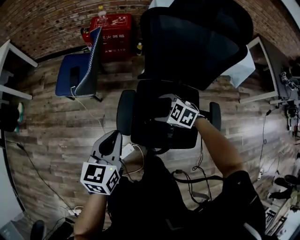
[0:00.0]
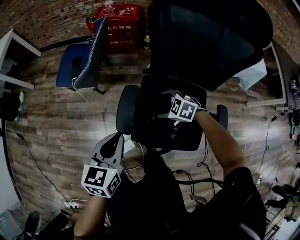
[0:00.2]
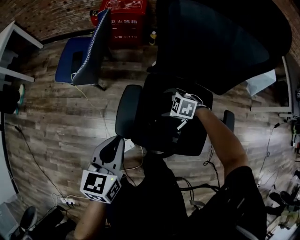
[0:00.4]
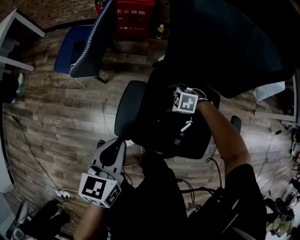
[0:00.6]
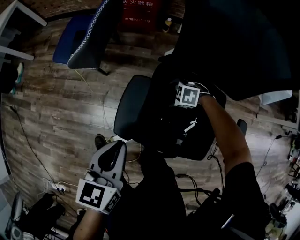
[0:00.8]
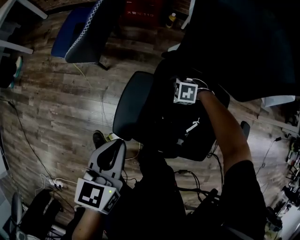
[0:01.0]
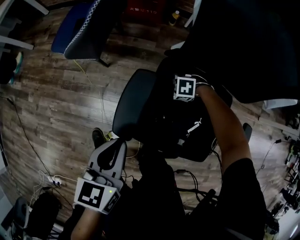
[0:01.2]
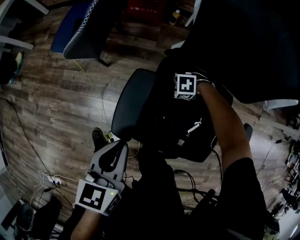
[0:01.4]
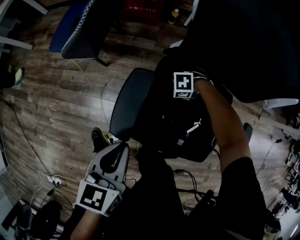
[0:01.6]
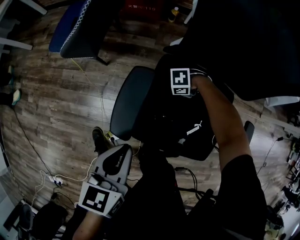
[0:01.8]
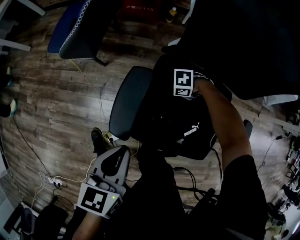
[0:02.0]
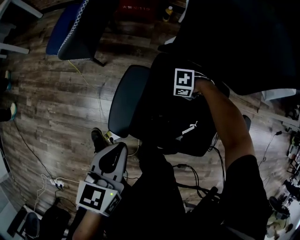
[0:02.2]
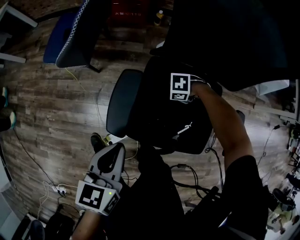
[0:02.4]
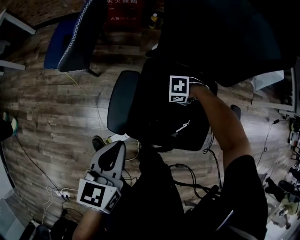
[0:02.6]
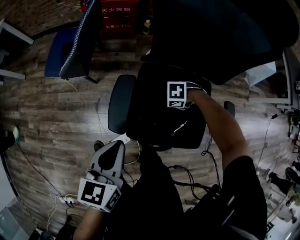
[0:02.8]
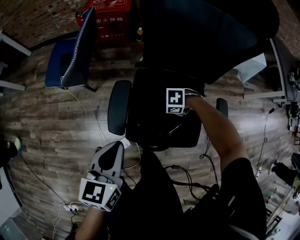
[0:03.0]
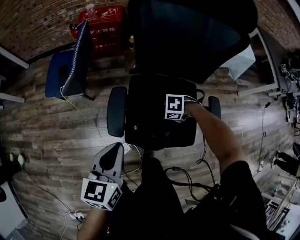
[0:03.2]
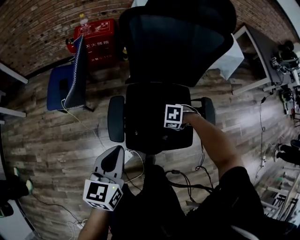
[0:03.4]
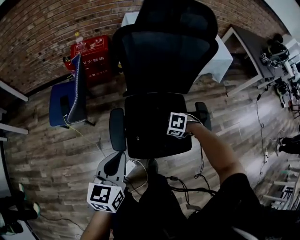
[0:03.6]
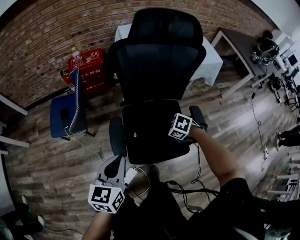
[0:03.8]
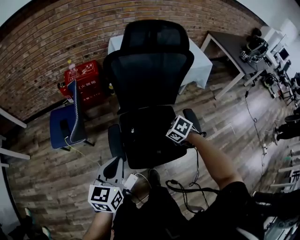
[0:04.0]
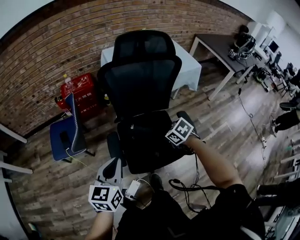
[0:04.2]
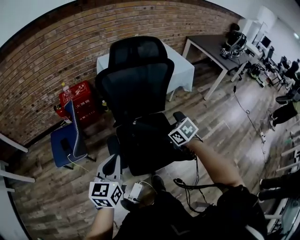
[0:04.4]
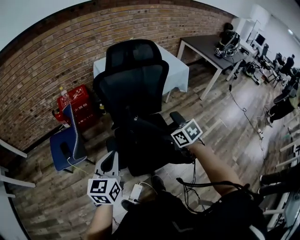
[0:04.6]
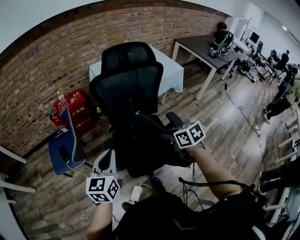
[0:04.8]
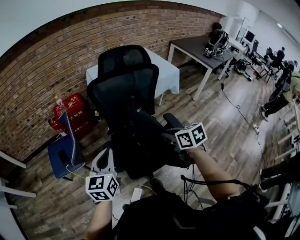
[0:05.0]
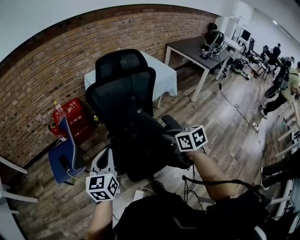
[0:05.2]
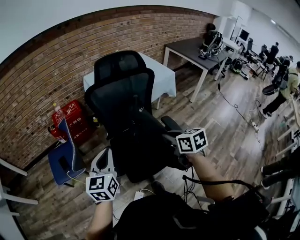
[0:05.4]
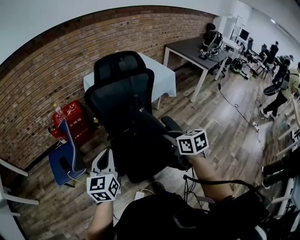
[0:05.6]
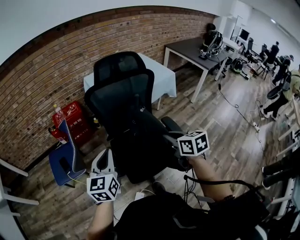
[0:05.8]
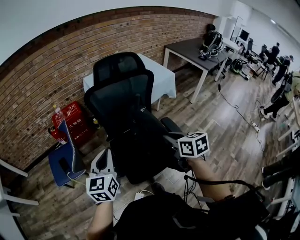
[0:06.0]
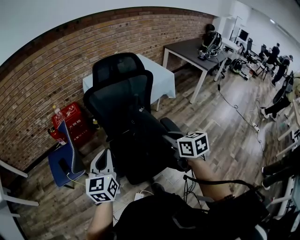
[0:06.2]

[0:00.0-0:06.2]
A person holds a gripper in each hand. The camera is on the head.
0:00.0 to 0:01.6: The right gripper is displaced downward by roughly 30 cm, and rotates some 50 degrees. Meanwhile the left gripper moves downward, about 15 cm.
0:01.6 to 0:03.2: The two grippers go approximately 15 cm upward. The right gripper rotates roughly 20 degrees, and closes up.
0:03.2 to 0:04.6: The left gripper is displaced upward by roughly 15 cm, and swivels roughly 30 degrees; the right gripper is displaced upward by some 30 cm, and turns by some 80 degrees.
0:04.6 to 0:06.2: The right gripper is displaced upward by approximately 10 cm, and swivels about 30 degrees.

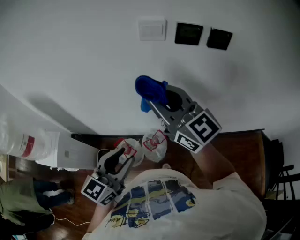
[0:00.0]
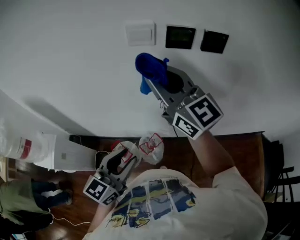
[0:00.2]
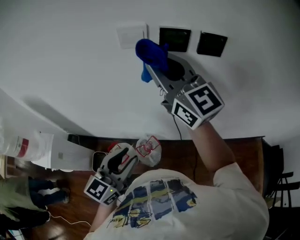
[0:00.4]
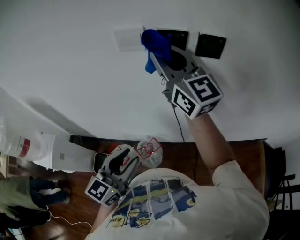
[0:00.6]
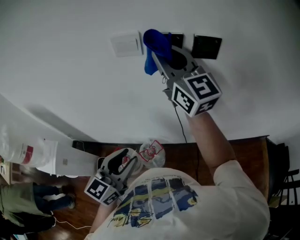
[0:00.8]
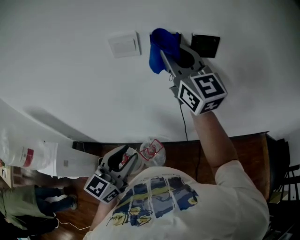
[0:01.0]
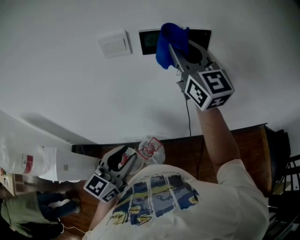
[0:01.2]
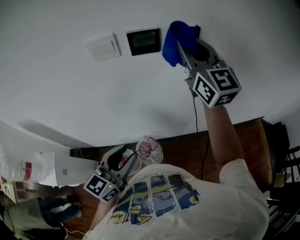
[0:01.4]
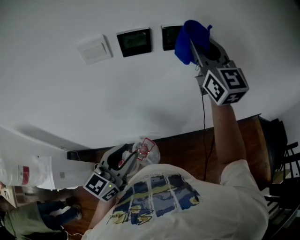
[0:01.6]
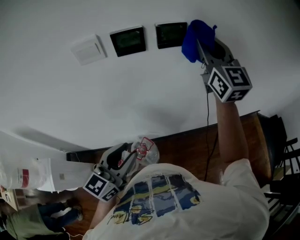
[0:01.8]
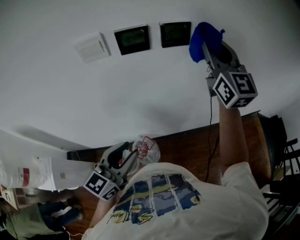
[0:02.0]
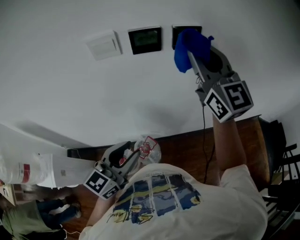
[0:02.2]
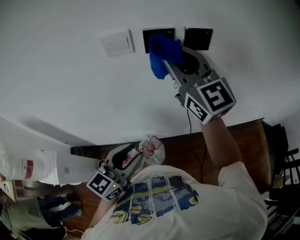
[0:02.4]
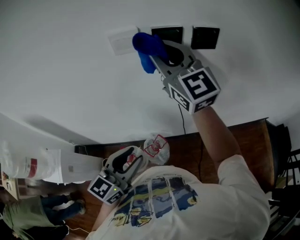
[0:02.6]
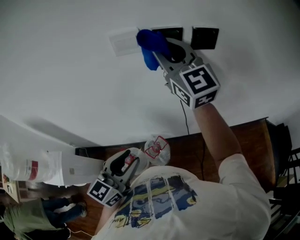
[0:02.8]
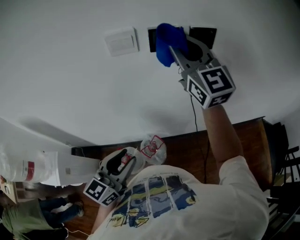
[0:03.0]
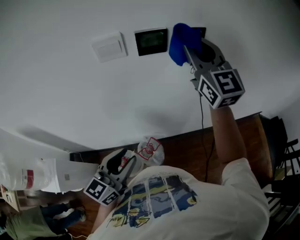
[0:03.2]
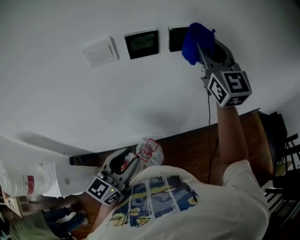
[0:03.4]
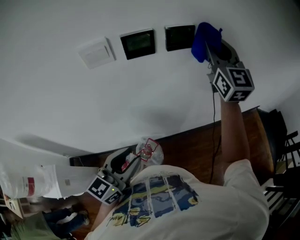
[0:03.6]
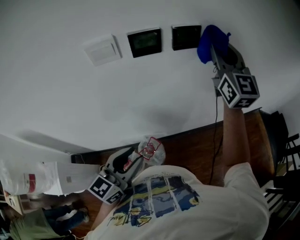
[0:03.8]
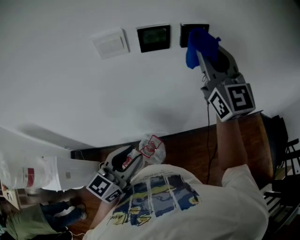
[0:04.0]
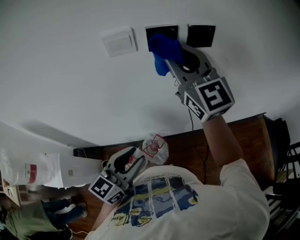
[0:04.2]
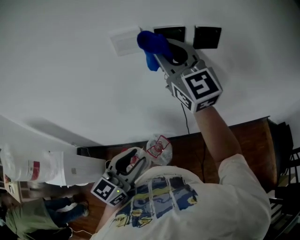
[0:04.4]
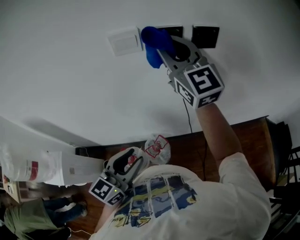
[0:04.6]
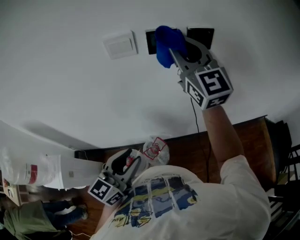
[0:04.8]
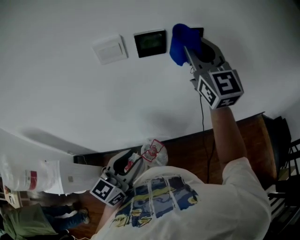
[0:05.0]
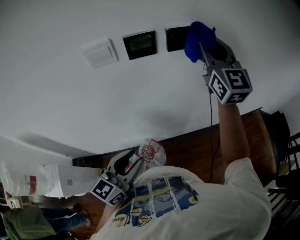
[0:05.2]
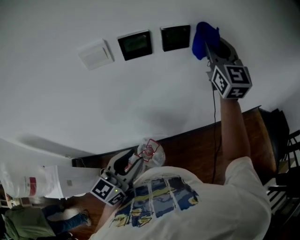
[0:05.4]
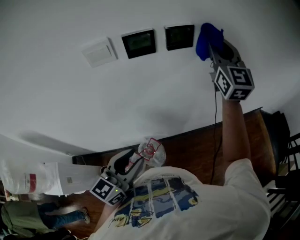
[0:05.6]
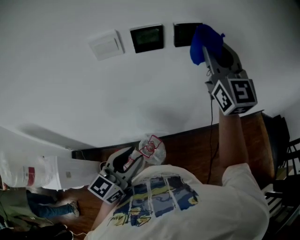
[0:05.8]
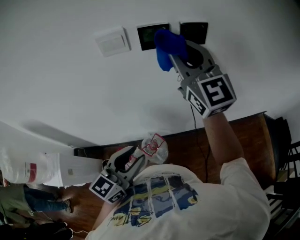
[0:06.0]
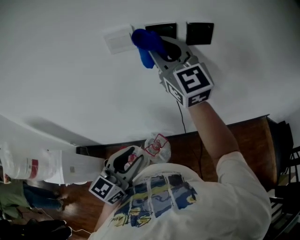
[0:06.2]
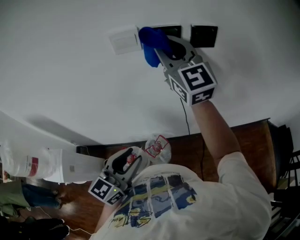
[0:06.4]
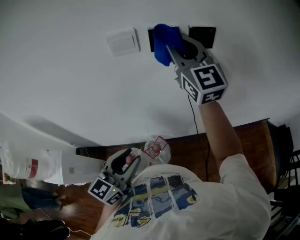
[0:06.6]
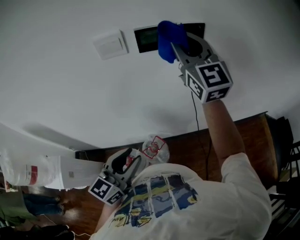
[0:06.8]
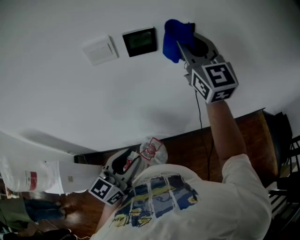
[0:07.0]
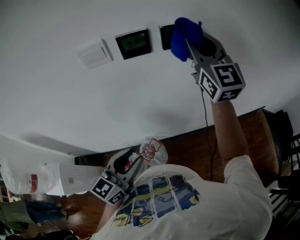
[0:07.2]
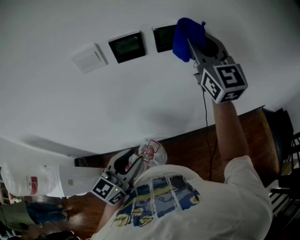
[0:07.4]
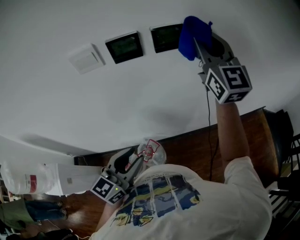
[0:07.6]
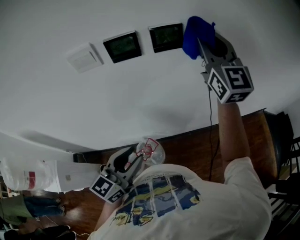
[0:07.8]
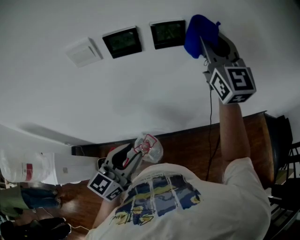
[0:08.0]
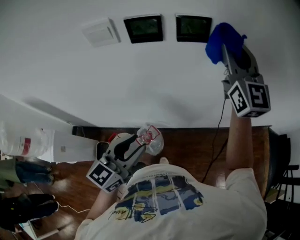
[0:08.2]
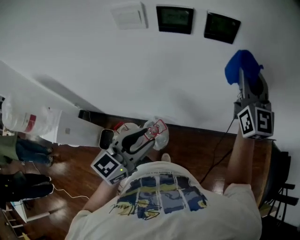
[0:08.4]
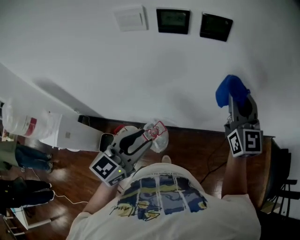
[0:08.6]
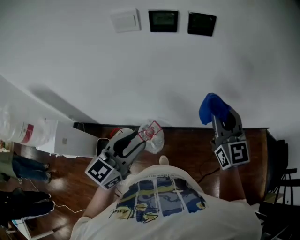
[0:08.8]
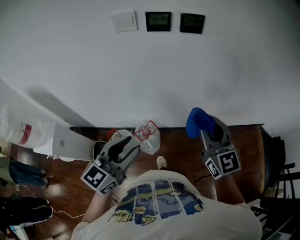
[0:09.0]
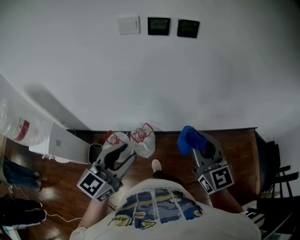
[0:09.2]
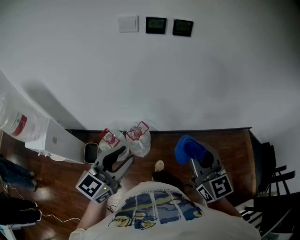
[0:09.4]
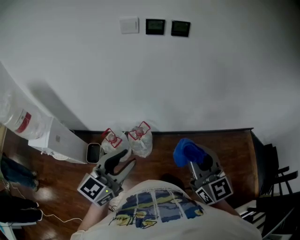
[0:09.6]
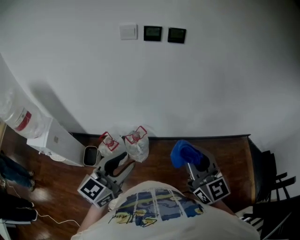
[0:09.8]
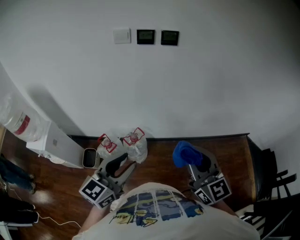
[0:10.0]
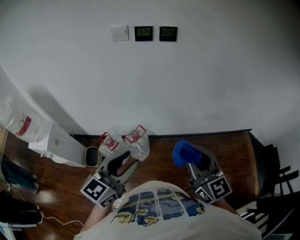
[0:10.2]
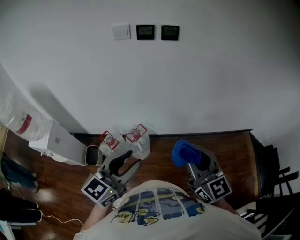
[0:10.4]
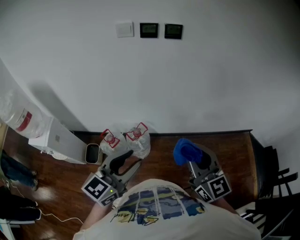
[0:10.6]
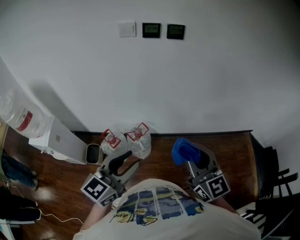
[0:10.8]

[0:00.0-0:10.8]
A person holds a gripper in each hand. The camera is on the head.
0:00.0 to 0:01.6: The left gripper heads to the right and forward, covering approximately 15 cm. Meanwhile the right gripper is displaced to the right and forward by roughly 35 cm, and turns by about 40 degrees.
0:01.6 to 0:03.0: The right gripper moves left and right over about 25 cm, changing direction 2 times, while the left gripper shifts about 10 cm to the left.
0:03.0 to 0:04.6: The right gripper goes to the right and returns, approximately 20 cm each way.
0:04.6 to 0:06.2: The right gripper goes to the right and returns, some 25 cm each way.
0:06.2 to 0:07.8: The right gripper heads to the right, covering about 25 cm. The left gripper shifts roughly 10 cm to the right and forward.
0:07.8 to 0:09.2: The right gripper moves backward and downward, approximately 40 cm, and swivels some 30 degrees, while the left gripper travels backward by some 20 cm.
0:09.2 to 0:10.8: The right gripper is displaced backward by some 10 cm, while the left gripper moves backward and to the right, approximately 10 cm.

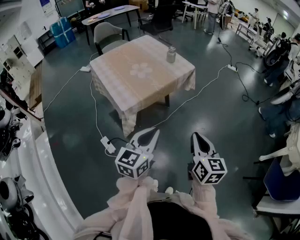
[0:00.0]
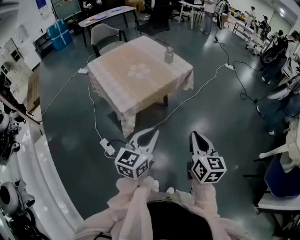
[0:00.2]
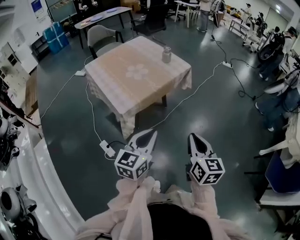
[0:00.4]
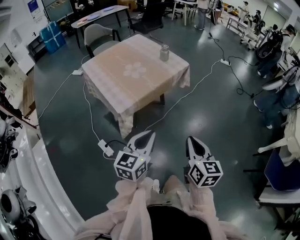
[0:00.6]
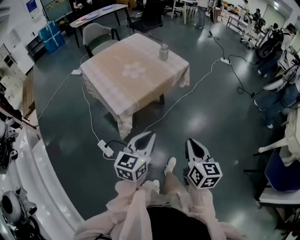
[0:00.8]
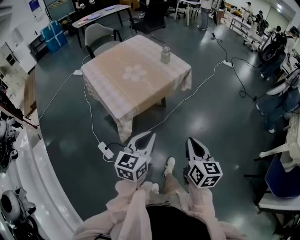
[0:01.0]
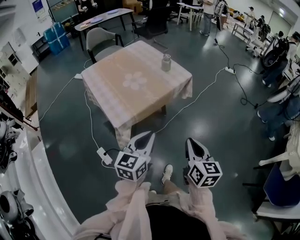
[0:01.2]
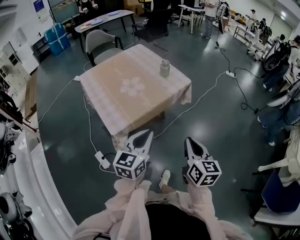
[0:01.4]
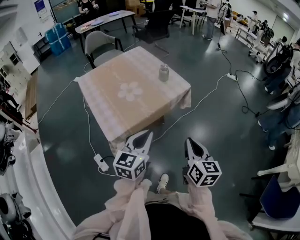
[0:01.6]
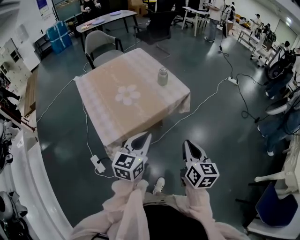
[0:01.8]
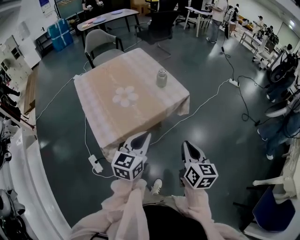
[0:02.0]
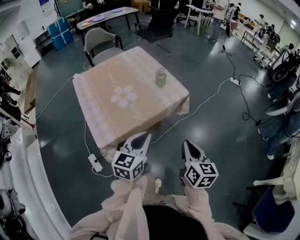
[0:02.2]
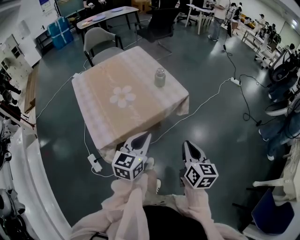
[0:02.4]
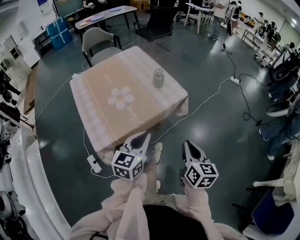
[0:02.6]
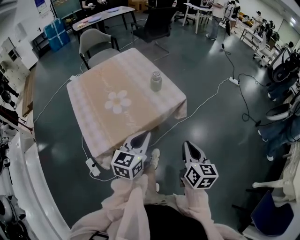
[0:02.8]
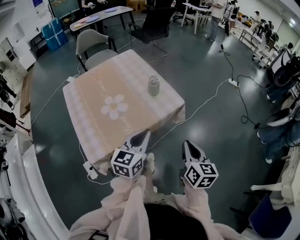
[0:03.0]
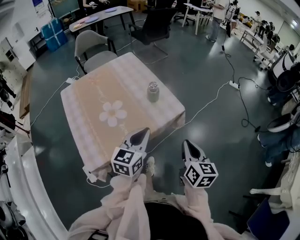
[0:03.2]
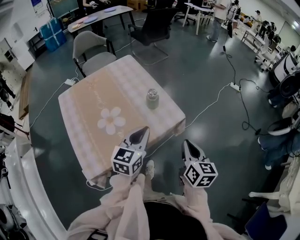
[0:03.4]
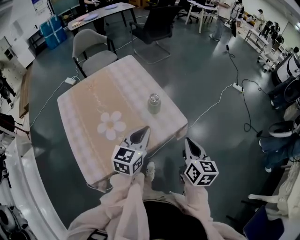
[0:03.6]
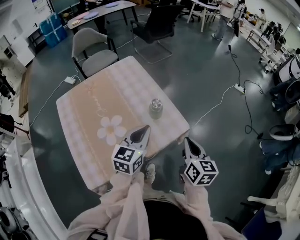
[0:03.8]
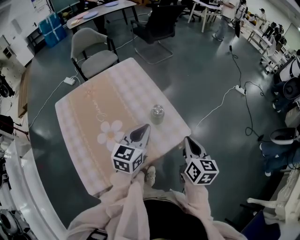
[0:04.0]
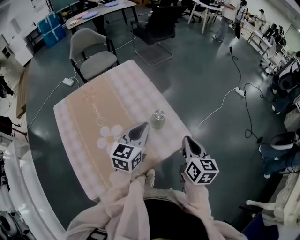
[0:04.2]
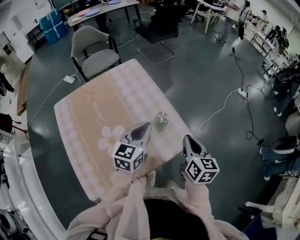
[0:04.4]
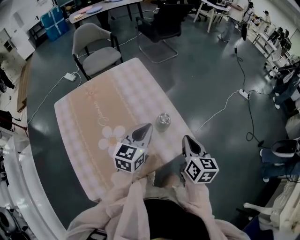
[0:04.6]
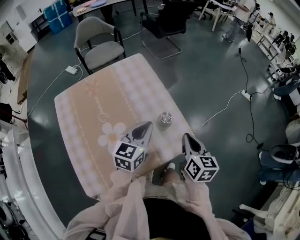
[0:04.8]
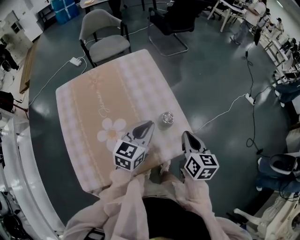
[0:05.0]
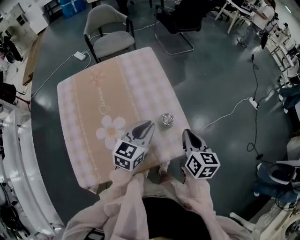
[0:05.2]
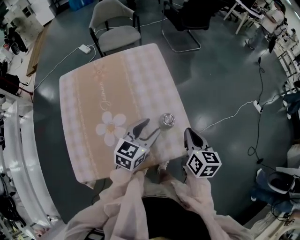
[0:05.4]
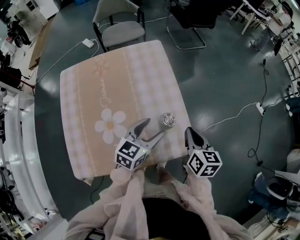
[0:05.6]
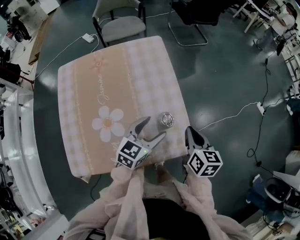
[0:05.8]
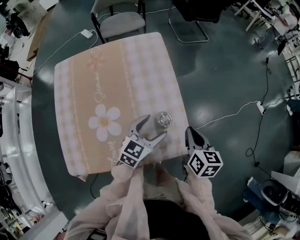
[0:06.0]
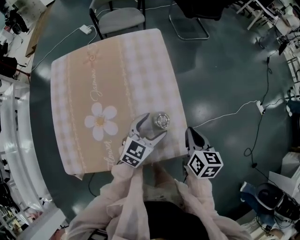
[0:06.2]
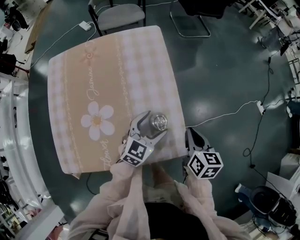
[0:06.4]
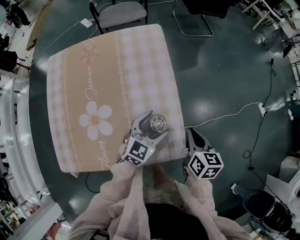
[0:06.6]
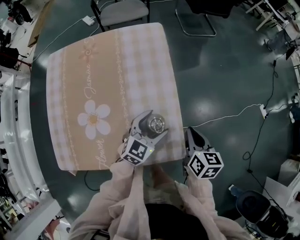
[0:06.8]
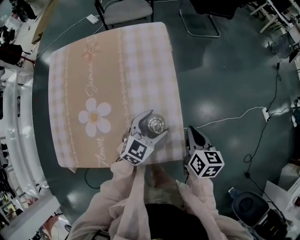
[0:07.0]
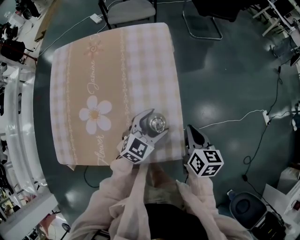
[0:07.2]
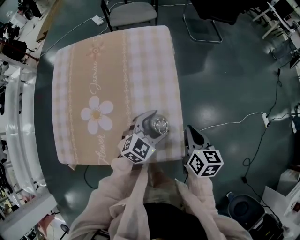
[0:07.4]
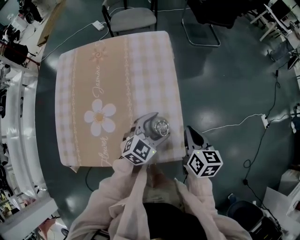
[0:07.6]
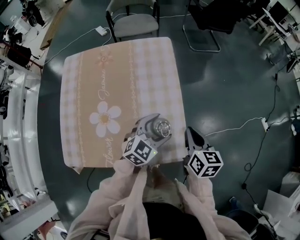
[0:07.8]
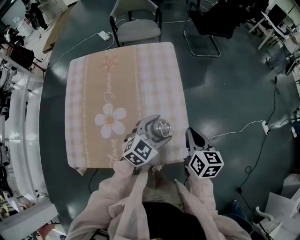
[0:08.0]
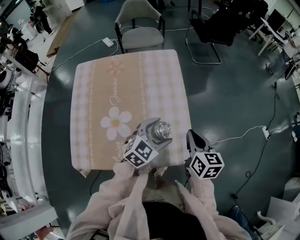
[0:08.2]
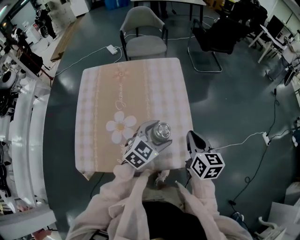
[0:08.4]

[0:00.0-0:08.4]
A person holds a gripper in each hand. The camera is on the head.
0:00.0 to 0:01.4: Both grippers move forward, roughly 15 cm.
0:01.4 to 0:02.8: The grippers both shift forward by approximately 20 cm.
0:02.8 to 0:04.2: Both grippers travel together forward, approximately 30 cm.
0:04.2 to 0:05.6: The left gripper travels downward by approximately 5 cm, and opens up; the right gripper travels forward by some 10 cm.
0:05.6 to 0:07.0: The right gripper travels downward and forward by about 10 cm; the left gripper travels downward, to the right and forward by roughly 15 cm.
0:07.0 to 0:08.4: The left gripper is displaced upward, to the left and backward by about 15 cm. The right gripper shifts approximately 15 cm upward and to the left.
